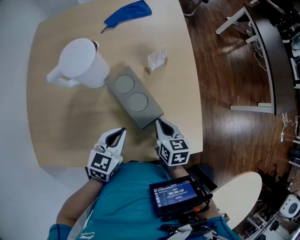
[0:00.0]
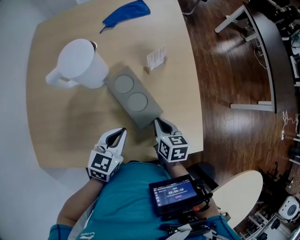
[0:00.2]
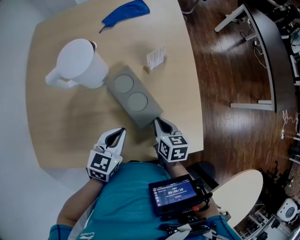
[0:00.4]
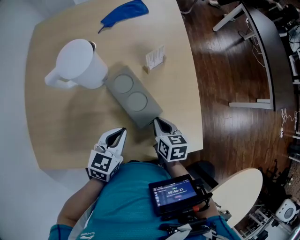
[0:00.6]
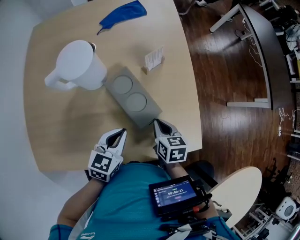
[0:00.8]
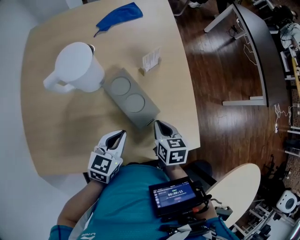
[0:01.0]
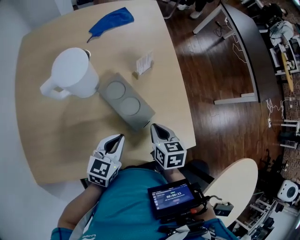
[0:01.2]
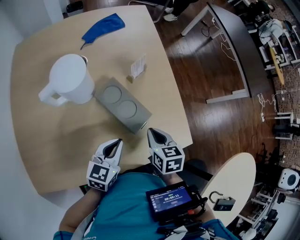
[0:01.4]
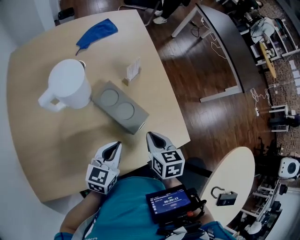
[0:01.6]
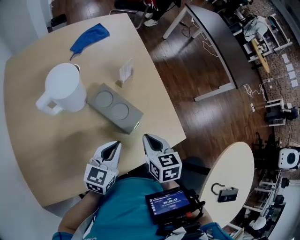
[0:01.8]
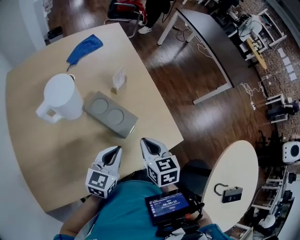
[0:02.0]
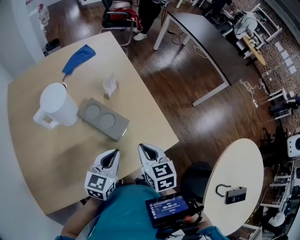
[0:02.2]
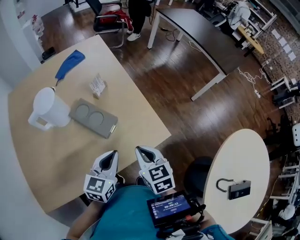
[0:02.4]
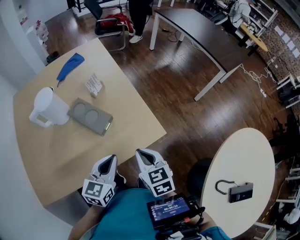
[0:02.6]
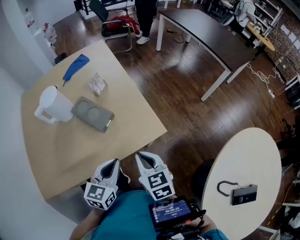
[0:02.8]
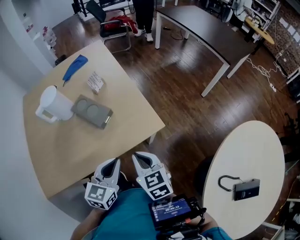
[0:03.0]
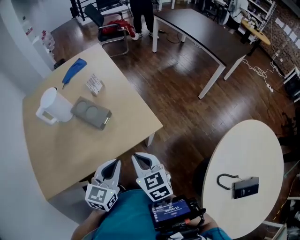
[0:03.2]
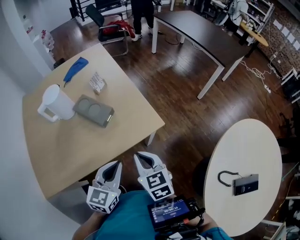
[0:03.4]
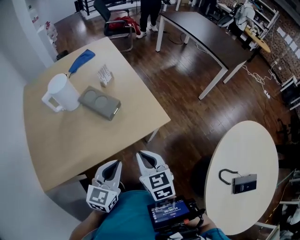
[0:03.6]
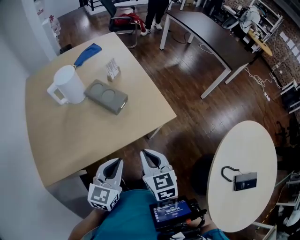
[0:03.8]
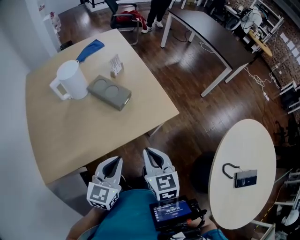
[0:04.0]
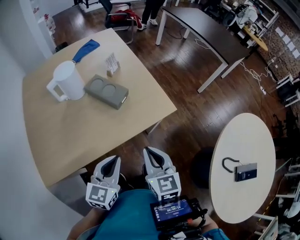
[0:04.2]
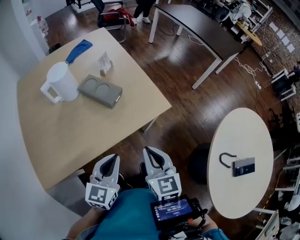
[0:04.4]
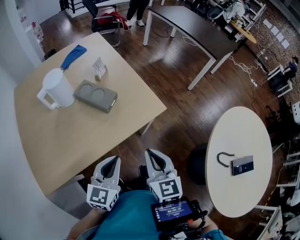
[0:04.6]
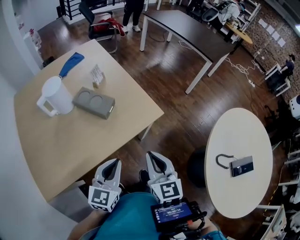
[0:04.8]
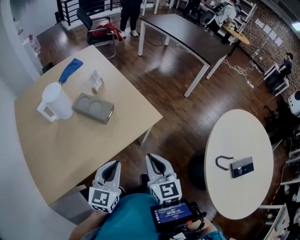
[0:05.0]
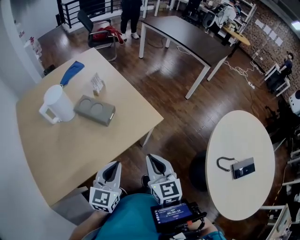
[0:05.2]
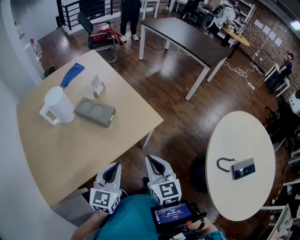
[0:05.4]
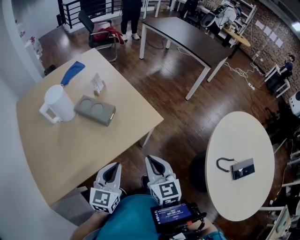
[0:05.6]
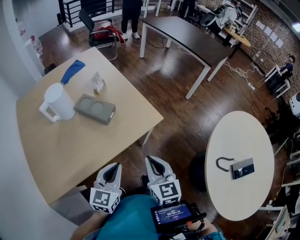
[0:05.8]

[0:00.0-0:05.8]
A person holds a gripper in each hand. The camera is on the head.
0:00.0 to 0:01.4: The right gripper changes place by about 5 cm.
0:01.4 to 0:02.8: The left gripper heads to the right, backward and upward, covering about 25 cm, while the right gripper moves backward, to the right and upward, some 25 cm.
0:02.8 to 0:04.4: The left gripper shifts about 15 cm backward and to the left. The right gripper is displaced backward and upward by roughly 15 cm.
0:04.4 to 0:05.8: There are only small adjustments of the grippers.

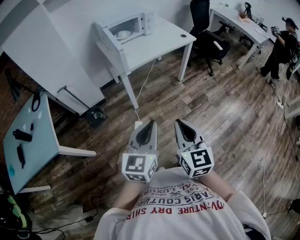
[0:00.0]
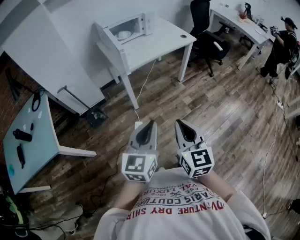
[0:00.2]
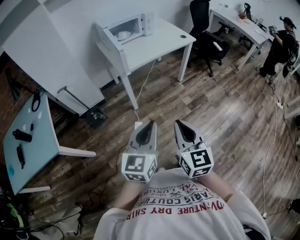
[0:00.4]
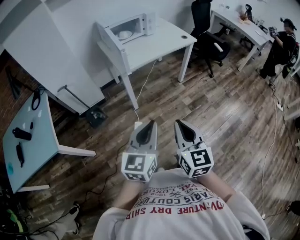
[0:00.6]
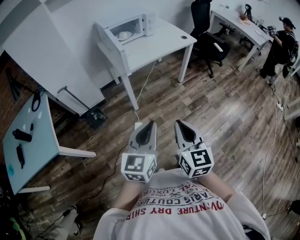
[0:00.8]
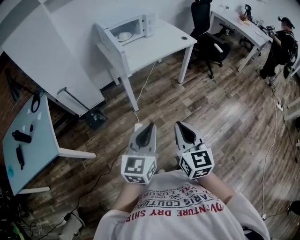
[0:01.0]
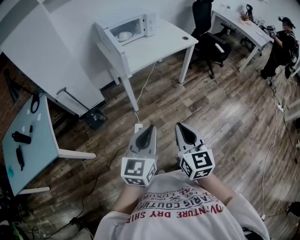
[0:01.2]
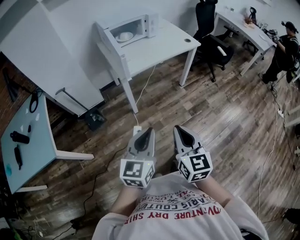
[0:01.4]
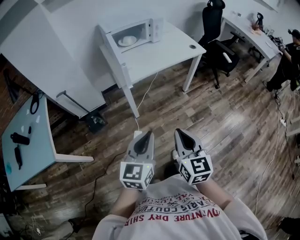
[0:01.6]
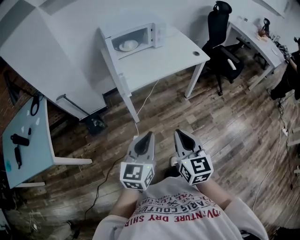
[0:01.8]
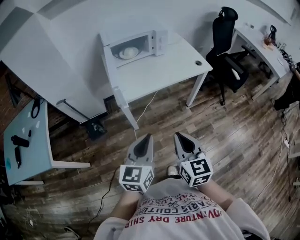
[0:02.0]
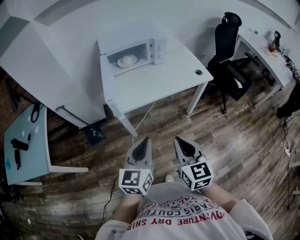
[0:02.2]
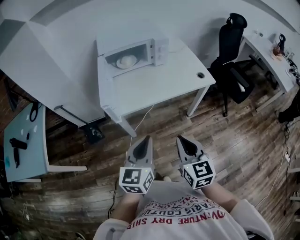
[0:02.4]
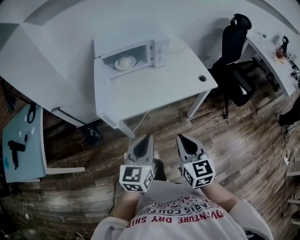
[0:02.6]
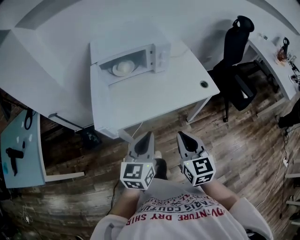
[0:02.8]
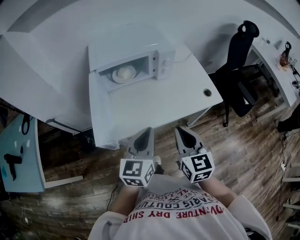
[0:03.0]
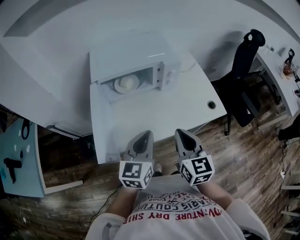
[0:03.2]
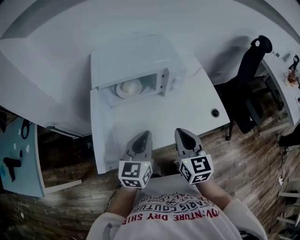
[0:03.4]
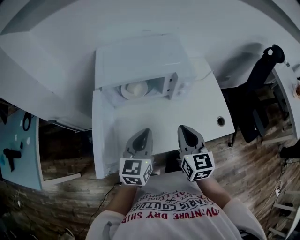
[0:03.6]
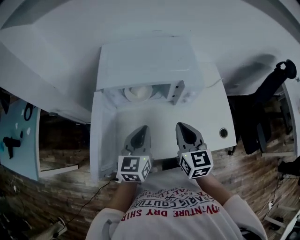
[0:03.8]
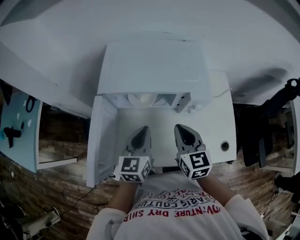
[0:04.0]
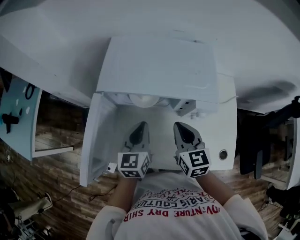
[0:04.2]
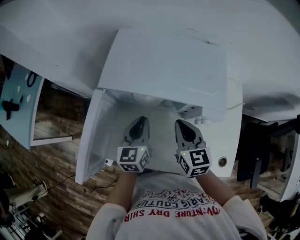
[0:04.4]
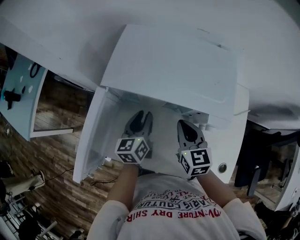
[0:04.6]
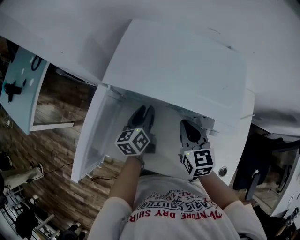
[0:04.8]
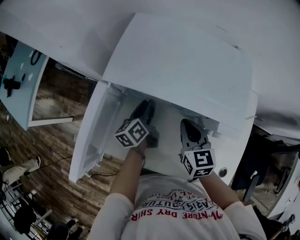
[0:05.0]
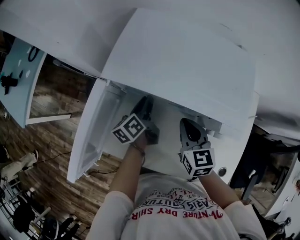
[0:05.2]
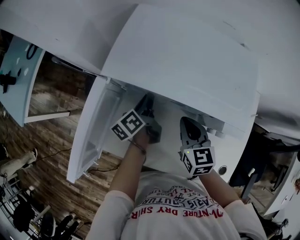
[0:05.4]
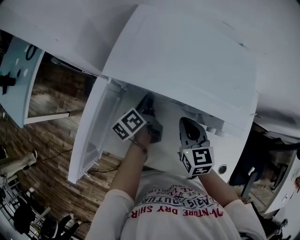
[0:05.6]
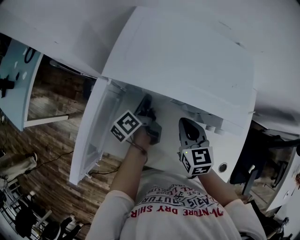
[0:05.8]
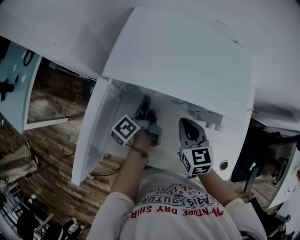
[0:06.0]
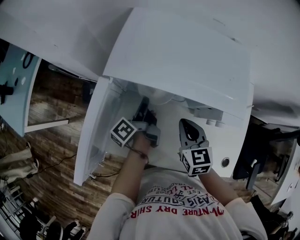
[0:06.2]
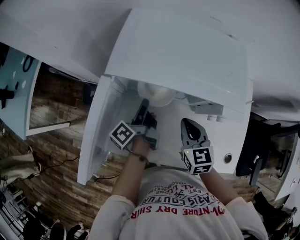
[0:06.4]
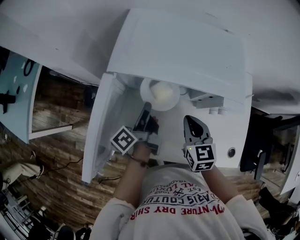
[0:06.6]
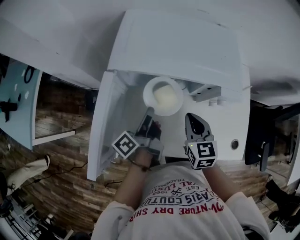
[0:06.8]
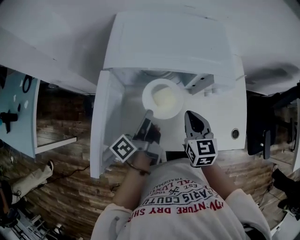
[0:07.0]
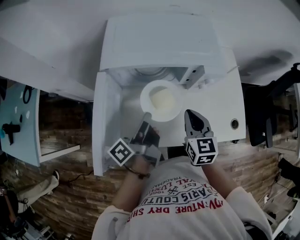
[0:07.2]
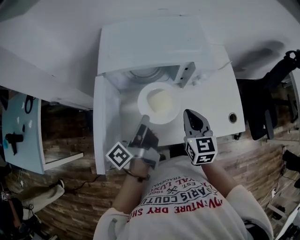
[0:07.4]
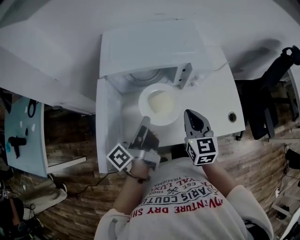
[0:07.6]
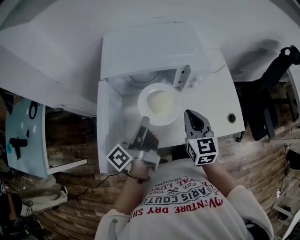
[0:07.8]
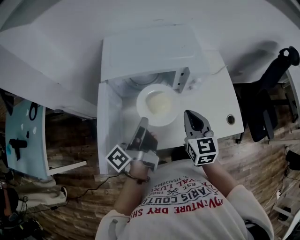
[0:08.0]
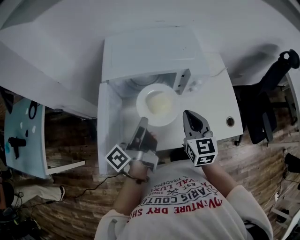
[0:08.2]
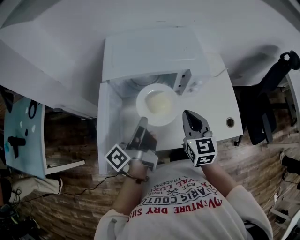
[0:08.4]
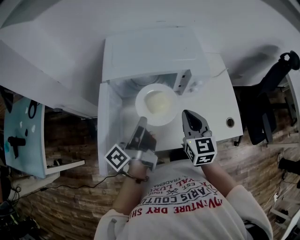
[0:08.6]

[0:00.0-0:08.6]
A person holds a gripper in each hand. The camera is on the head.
0:00.0 to 0:01.4: The right gripper goes some 5 cm forward.
0:01.4 to 0:02.8: The pair of grippers is taken forward, some 40 cm.
0:02.8 to 0:04.4: The left gripper shifts by roughly 40 cm, and changes its angle by about 30 degrees. The right gripper shifts by approximately 40 cm, and swivels some 30 degrees.
0:04.4 to 0:05.8: The left gripper goes roughly 10 cm downward and forward, rolls counterclockwise, seen from behind, by approximately 60 degrees, and opens, then closes again. Meanwhile the right gripper goes approximately 5 cm downward.
0:05.8 to 0:07.2: The right gripper moves backward, some 10 cm, and changes its angle by about 20 degrees. Meanwhile the left gripper is displaced backward and upward by some 20 cm, and rotates some 30 degrees.
0:07.2 to 0:08.6: The grippers both shift upward by some 5 cm.

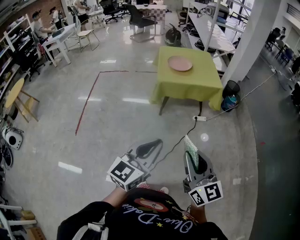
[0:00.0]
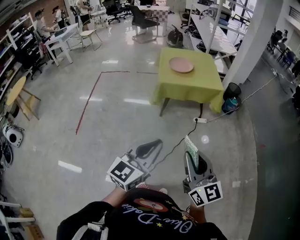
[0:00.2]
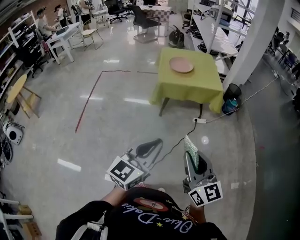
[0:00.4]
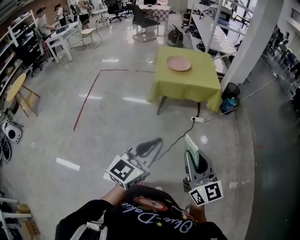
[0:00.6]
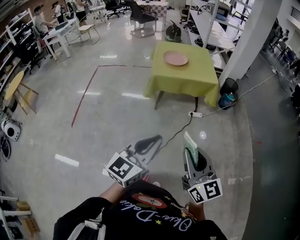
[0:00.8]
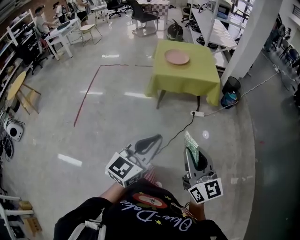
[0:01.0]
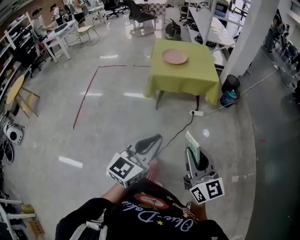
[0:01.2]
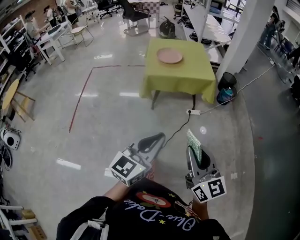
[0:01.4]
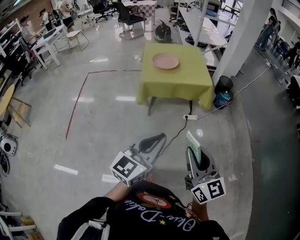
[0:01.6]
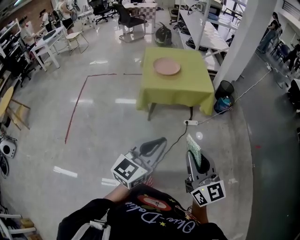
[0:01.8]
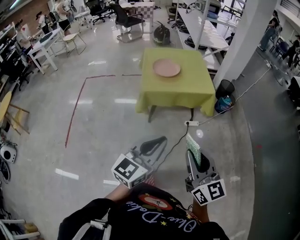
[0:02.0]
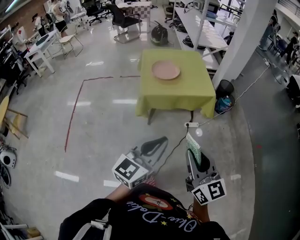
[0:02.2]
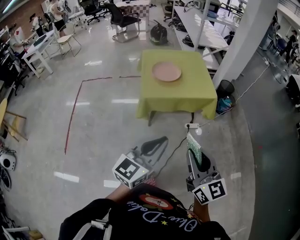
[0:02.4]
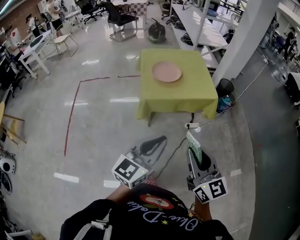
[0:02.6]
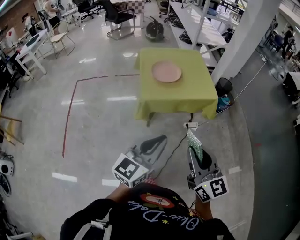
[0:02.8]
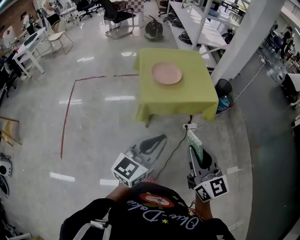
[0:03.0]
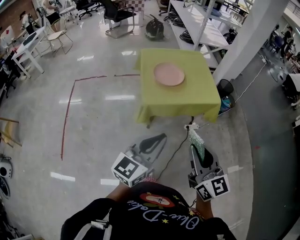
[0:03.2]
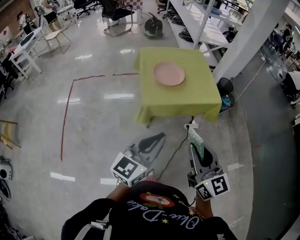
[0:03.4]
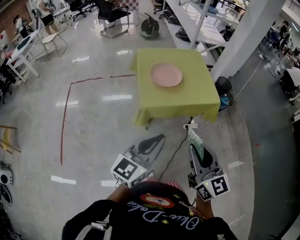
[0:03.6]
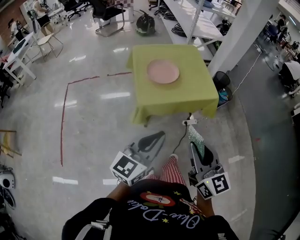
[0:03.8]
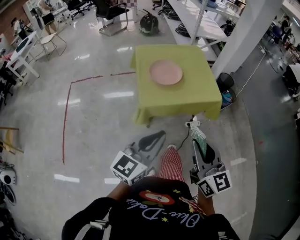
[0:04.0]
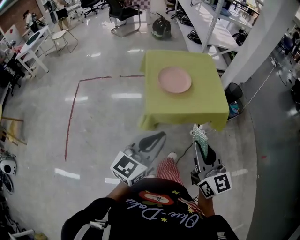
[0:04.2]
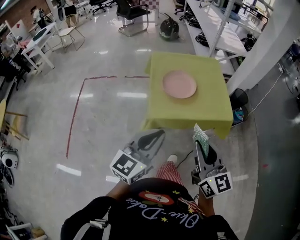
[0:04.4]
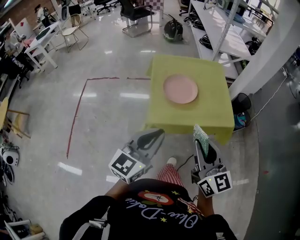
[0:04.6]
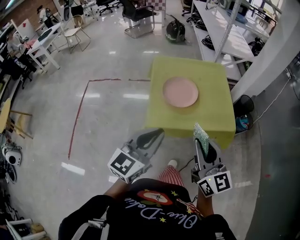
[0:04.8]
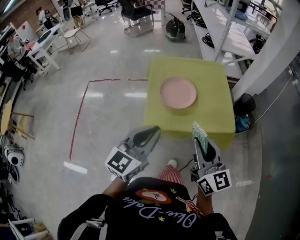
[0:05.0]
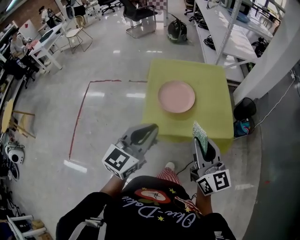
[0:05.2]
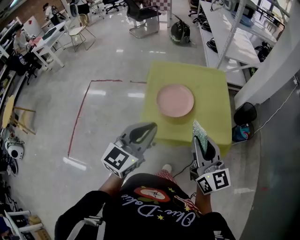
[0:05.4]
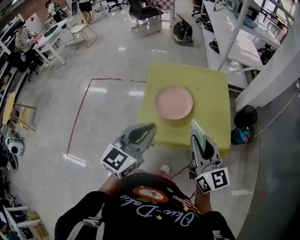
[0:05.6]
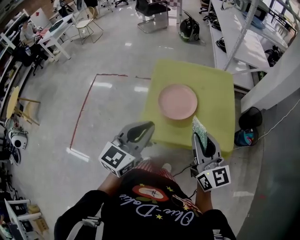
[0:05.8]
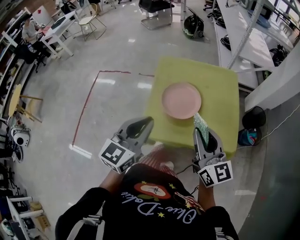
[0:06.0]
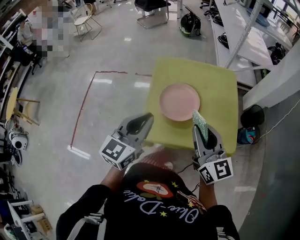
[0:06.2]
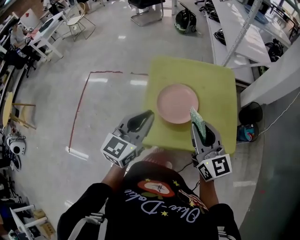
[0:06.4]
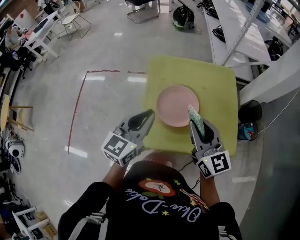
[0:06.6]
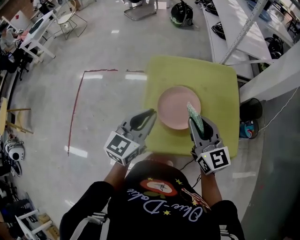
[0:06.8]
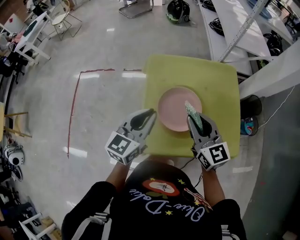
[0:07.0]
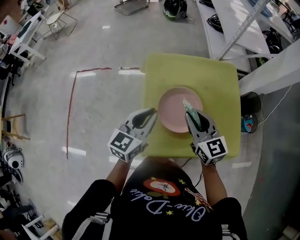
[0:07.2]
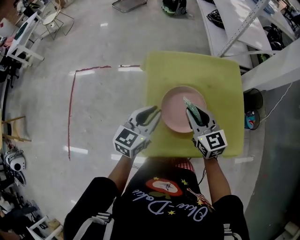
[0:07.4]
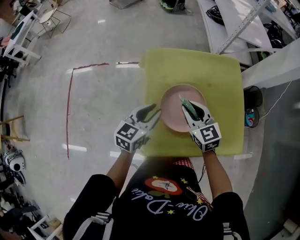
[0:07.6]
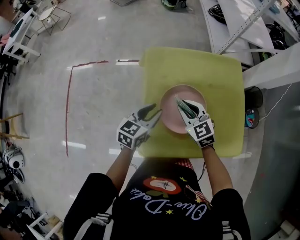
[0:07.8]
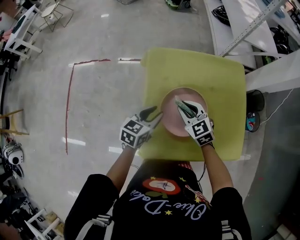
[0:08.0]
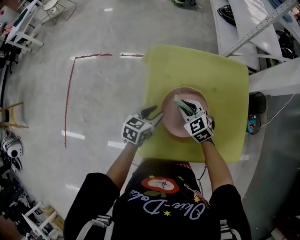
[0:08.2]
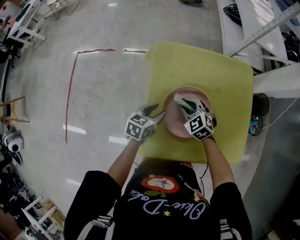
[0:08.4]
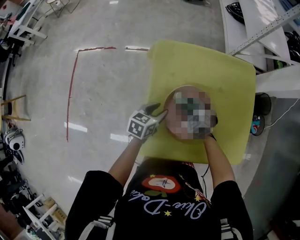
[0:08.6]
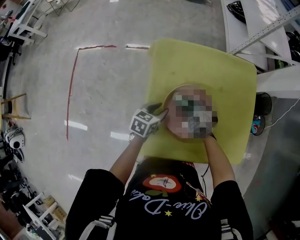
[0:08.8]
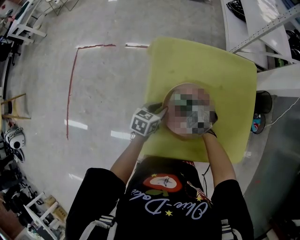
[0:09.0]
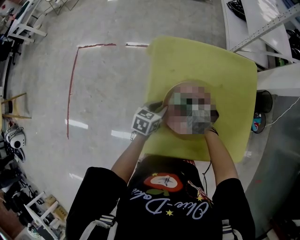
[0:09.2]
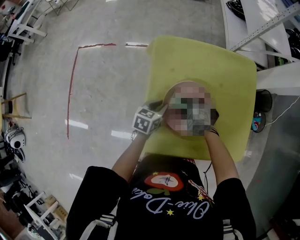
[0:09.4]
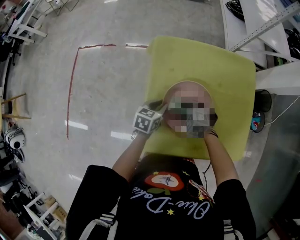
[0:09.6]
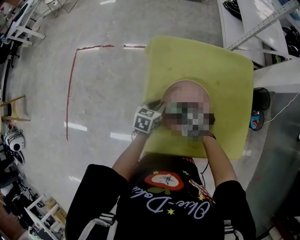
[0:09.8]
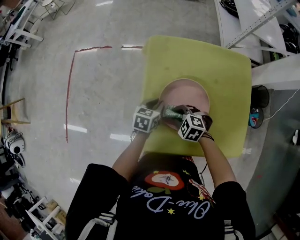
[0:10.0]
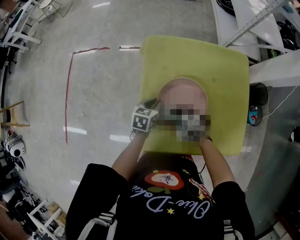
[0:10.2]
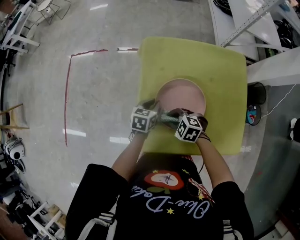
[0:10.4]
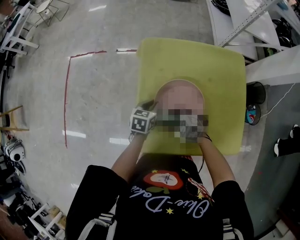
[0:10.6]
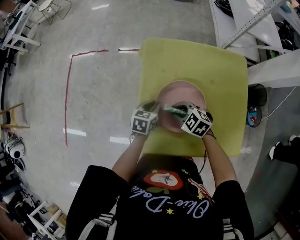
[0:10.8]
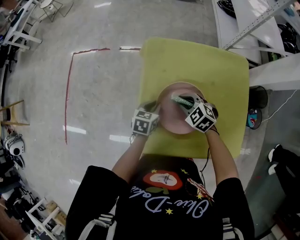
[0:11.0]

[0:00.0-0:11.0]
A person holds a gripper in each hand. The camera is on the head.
0:00.0 to 0:01.6: The two grippers go some 15 cm to the right and forward.
0:01.6 to 0:03.2: Both grippers travel together forward and to the left, approximately 30 cm.
0:03.2 to 0:04.8: The grippers both shift forward by approximately 20 cm.
0:04.8 to 0:06.2: Both grippers move forward, about 20 cm.
0:06.2 to 0:07.8: The left gripper moves forward and downward, about 30 cm, changes its angle by some 30 degrees, and opens. The right gripper shifts approximately 30 cm forward, downward and to the left, and tilts its fingers roughly 30 degrees downward.
0:07.8 to 0:09.4: The two grippers go about 15 cm downward. The right gripper rotates roughly 40 degrees. Meanwhile the left gripper swivels approximately 20 degrees.
0:09.4 to 0:11.0: The right gripper goes backward and returns, about 10 cm each way.
